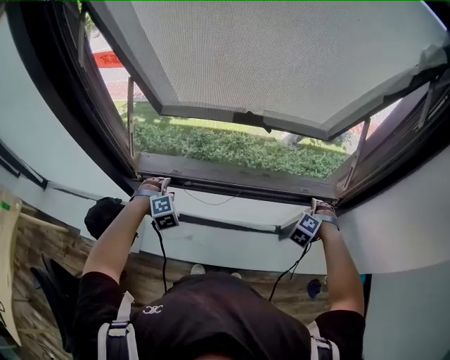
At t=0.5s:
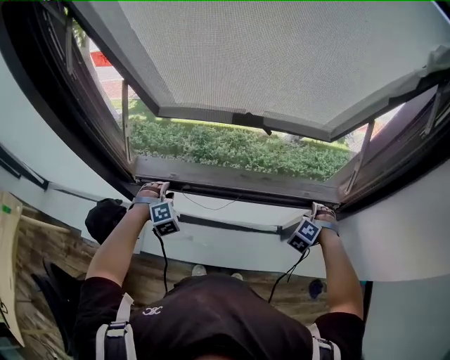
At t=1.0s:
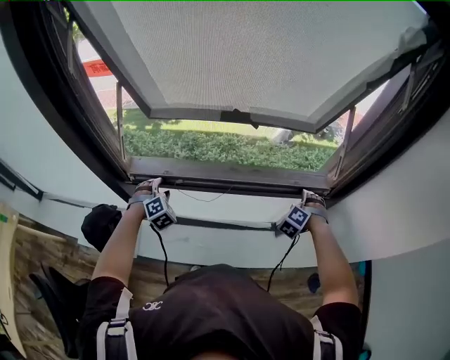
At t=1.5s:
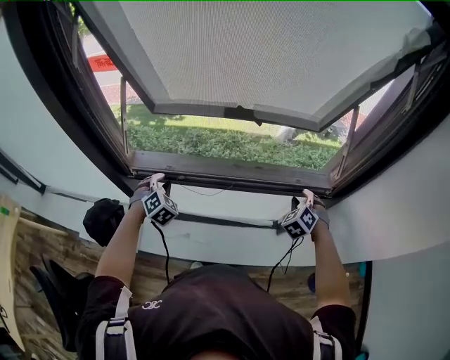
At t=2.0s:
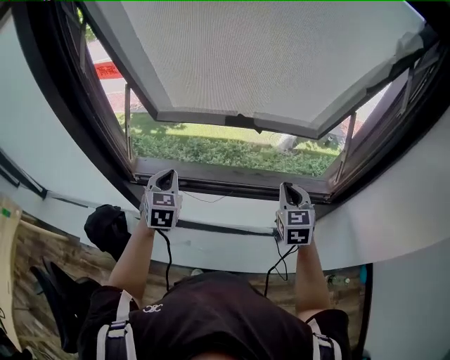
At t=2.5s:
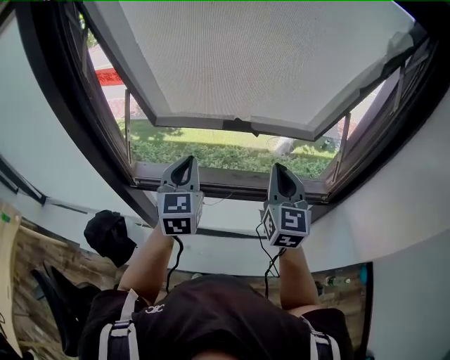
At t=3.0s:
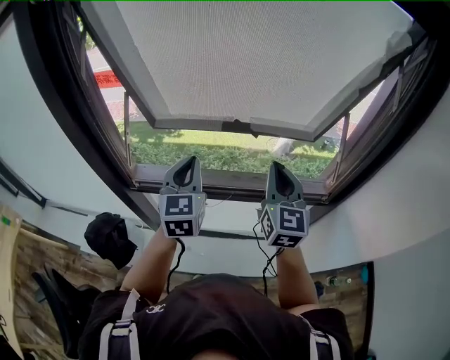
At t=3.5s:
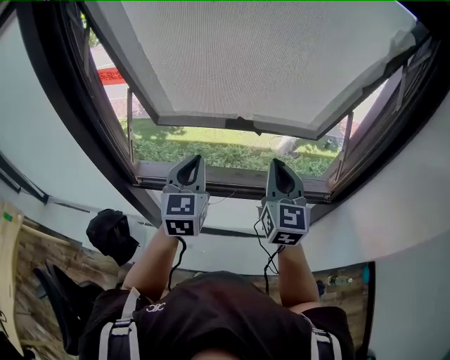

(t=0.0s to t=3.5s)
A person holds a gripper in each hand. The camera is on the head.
t=0.0s - t=2.0s: The right gripper heads upward and to the left, covering some 20 cm, tilts its fingers about 30 degrees upward, and closes up. The left gripper shifts roughly 15 cm upward, rotates around the line of its fingers by approximately 60 degrees, counterclockwise from behind, and closes up.
t=2.0s - t=3.5s: The right gripper is displaced upward and to the left by approximately 15 cm, and turns by approximately 30 degrees; the left gripper moves upward and to the right, roughly 15 cm, and rotates roughly 20 degrees.

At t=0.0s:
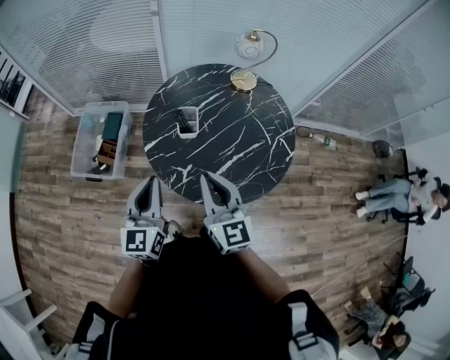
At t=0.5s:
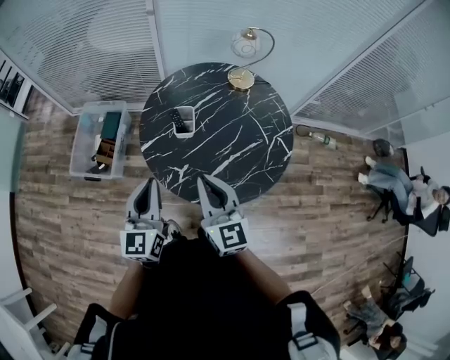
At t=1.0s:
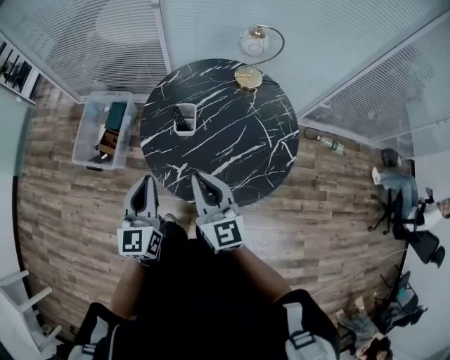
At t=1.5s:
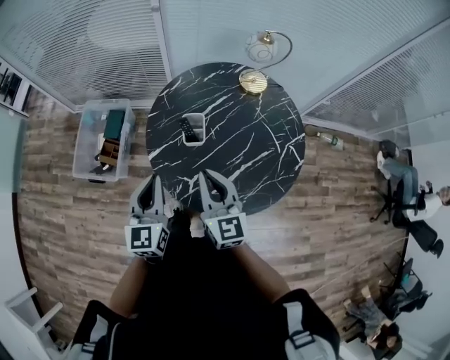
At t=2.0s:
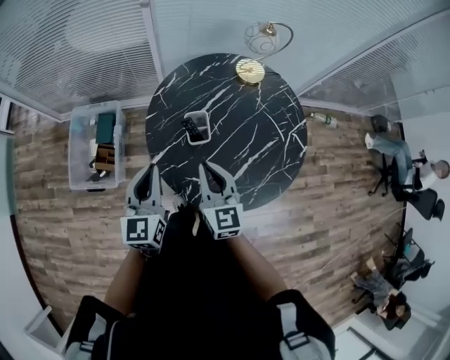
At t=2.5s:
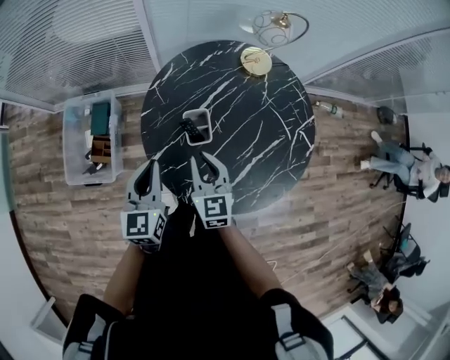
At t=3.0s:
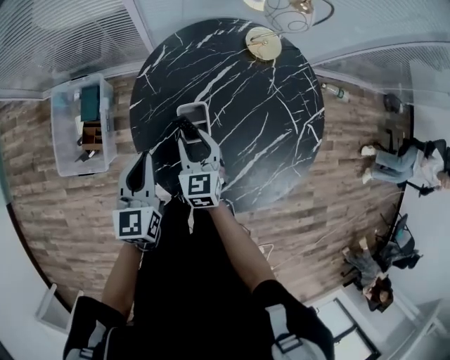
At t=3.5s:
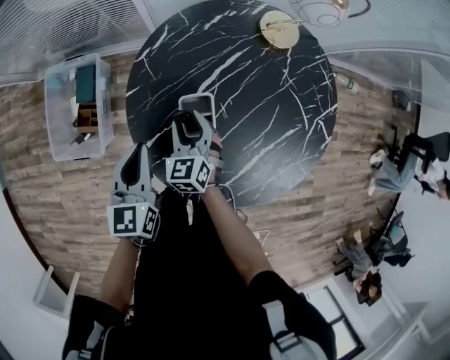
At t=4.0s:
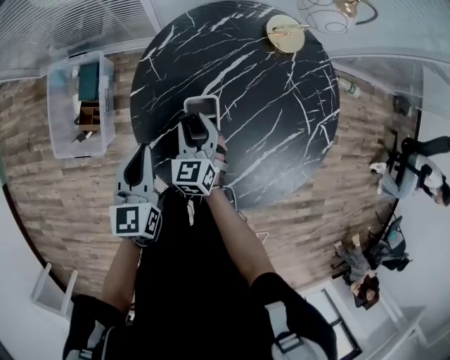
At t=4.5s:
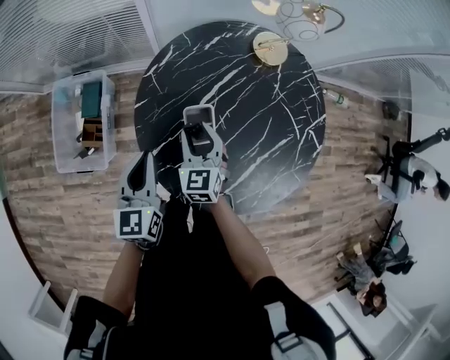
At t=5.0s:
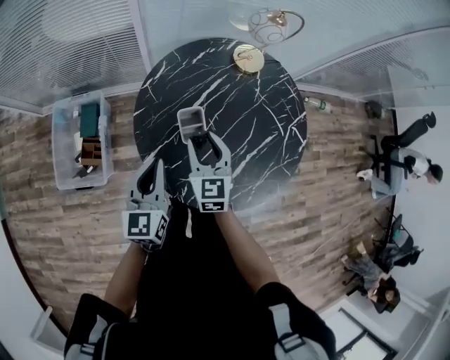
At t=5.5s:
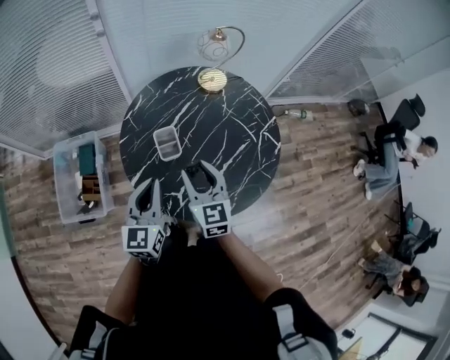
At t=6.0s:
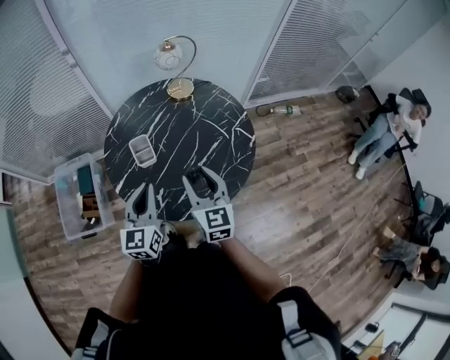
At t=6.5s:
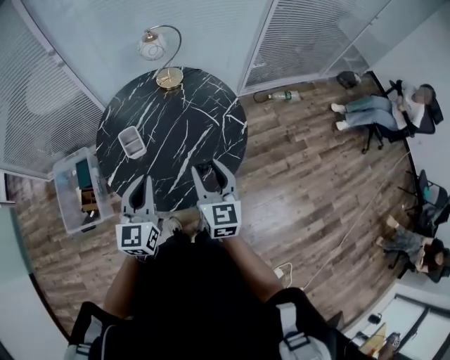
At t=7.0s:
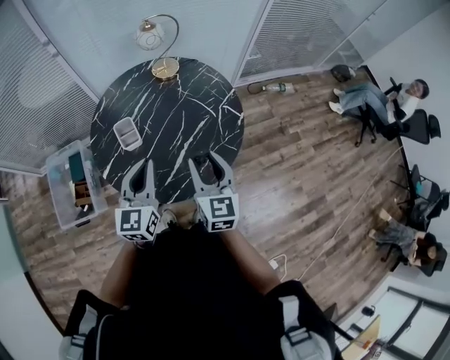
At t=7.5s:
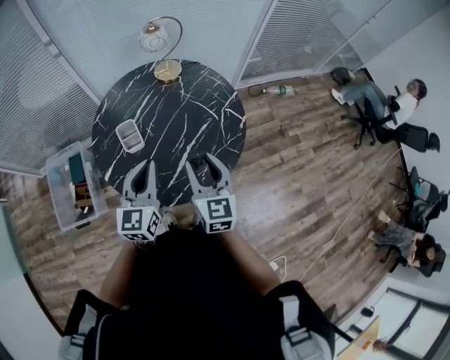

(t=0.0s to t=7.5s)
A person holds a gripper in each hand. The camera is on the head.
t=0.0s - t=2.0s: The right gripper is displaced forward, downward and to the left by roughly 20 cm. The left gripper moves forward, approximately 15 cm.
t=2.0s - t=4.0s: The two grippers go some 25 cm downward and forward. The right gripper turns by some 30 degrees, and opens.
t=4.0s - t=5.5s: The grippers both shift upward, backward and to the right by about 25 cm. The left gripper swivels approximately 20 degrees. The right gripper turns by some 30 degrees.
t=5.5s - t=7.5s: The grippers both shift to the right by about 20 cm.

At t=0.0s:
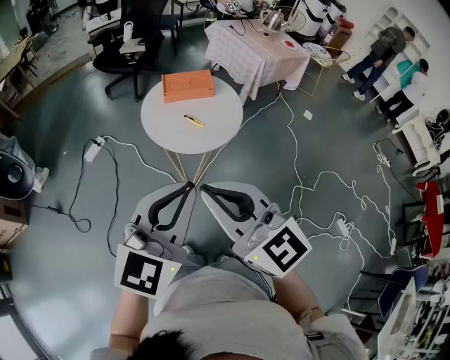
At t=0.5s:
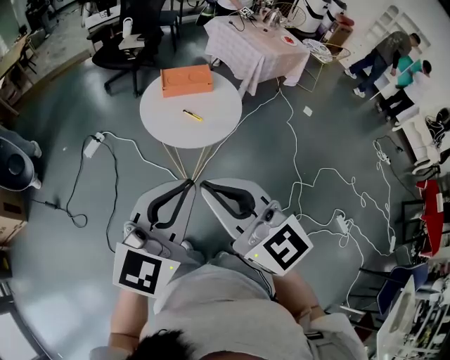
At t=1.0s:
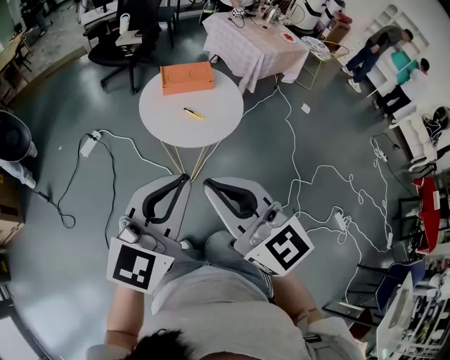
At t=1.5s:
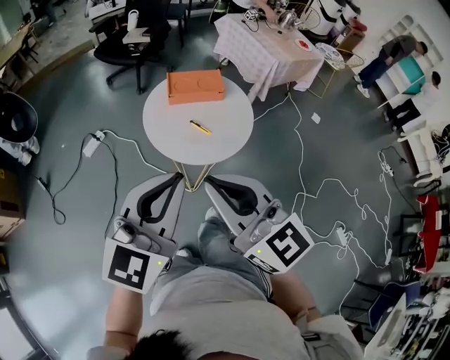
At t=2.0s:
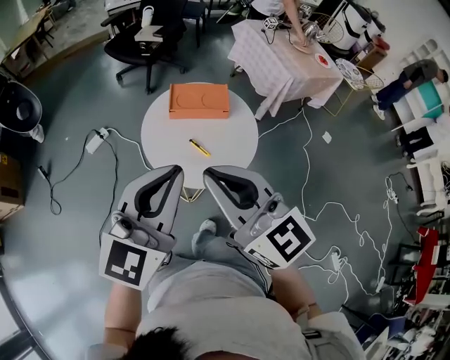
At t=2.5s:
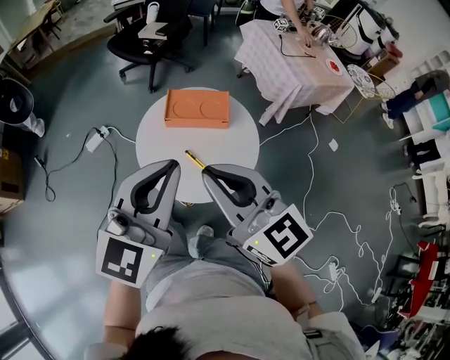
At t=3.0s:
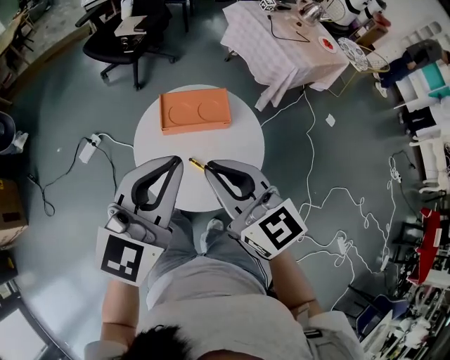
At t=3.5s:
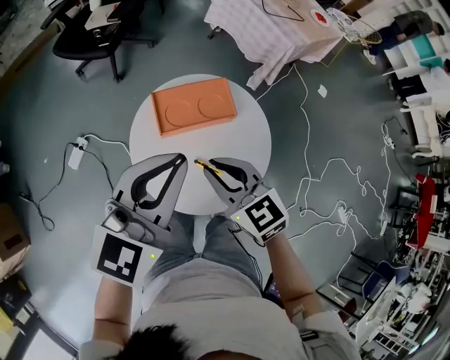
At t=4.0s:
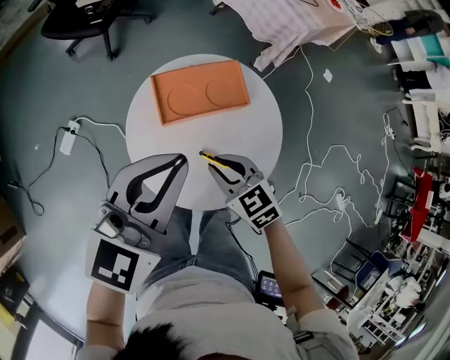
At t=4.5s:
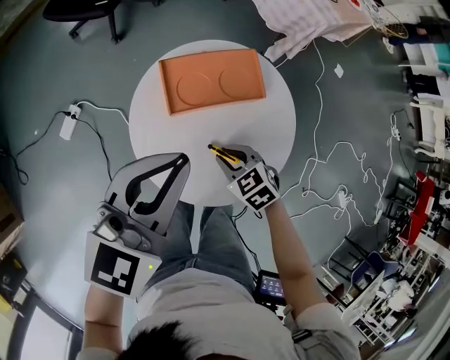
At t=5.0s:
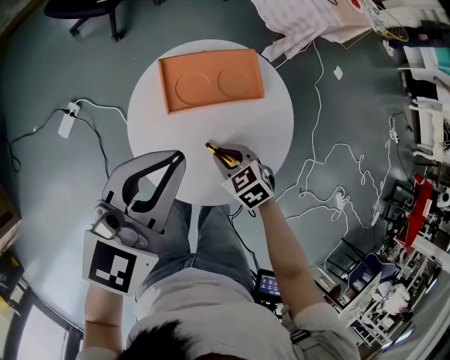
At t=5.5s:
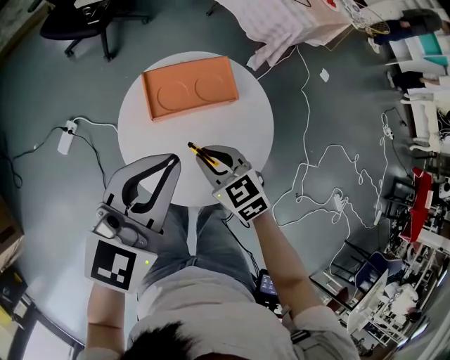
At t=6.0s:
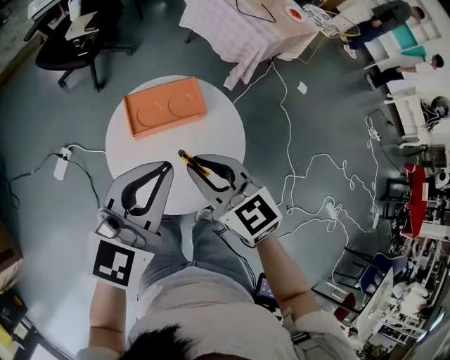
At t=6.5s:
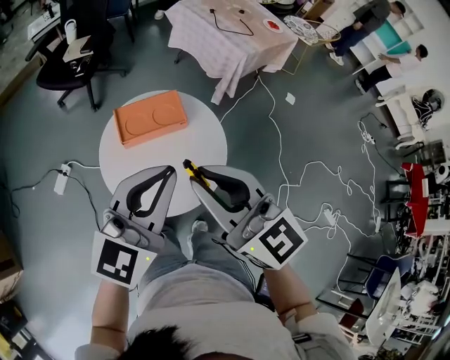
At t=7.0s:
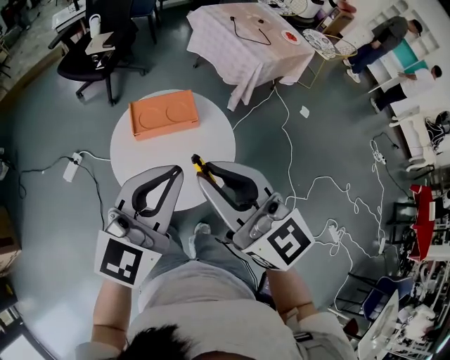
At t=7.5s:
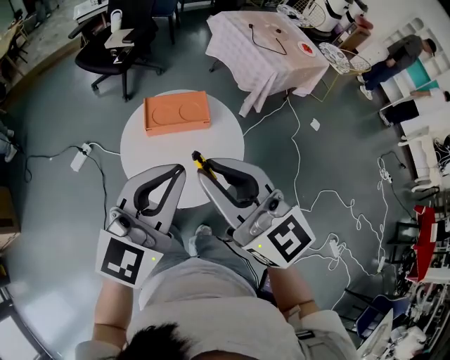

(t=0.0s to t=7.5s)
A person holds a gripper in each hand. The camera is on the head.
t=0.0s - t=2.0s: The two grippers go about 20 cm forward.
t=2.0s - t=4.0s: The left gripper shifts about 30 cm forward and downward, and rotates some 30 degrees. Meanwhile the right gripper goes roughly 40 cm downward and forward, and tilts its fingers approximately 40 degrees downward.
t=4.0s - t=5.5s: The right gripper travels downward and back again, approximately 10 cm each way.
t=5.5s - t=7.5s: The left gripper goes approximately 20 cm backward, upward and to the right. Meanwhile the right gripper heads upward, covering roughly 30 cm, and points its fingers approximately 40 degrees further upward.

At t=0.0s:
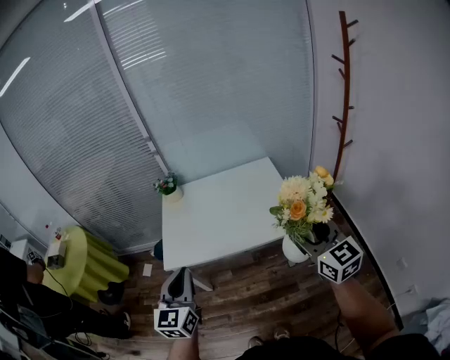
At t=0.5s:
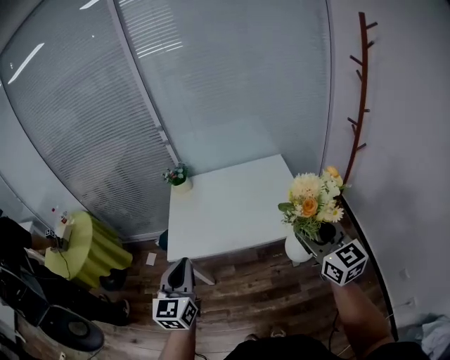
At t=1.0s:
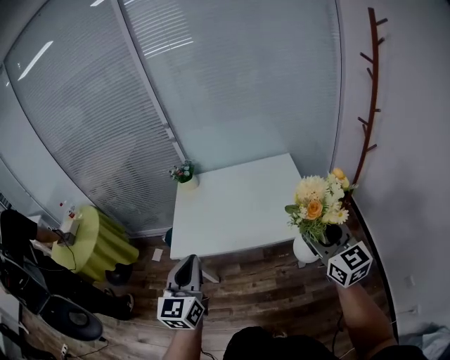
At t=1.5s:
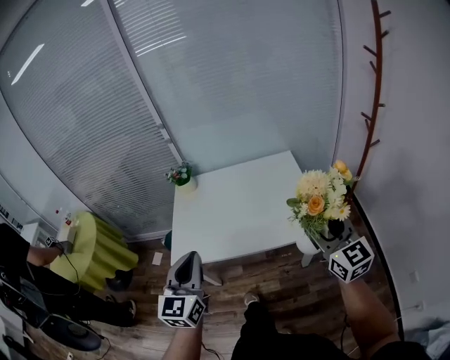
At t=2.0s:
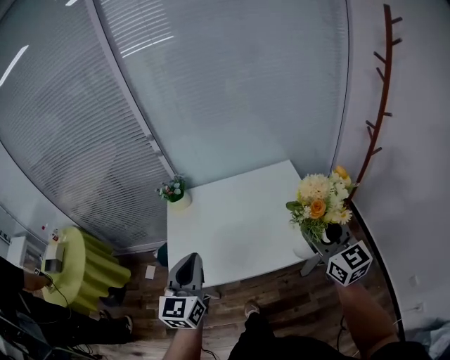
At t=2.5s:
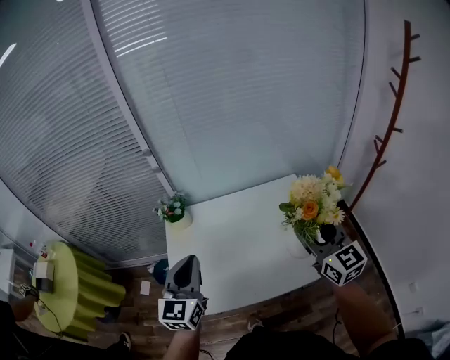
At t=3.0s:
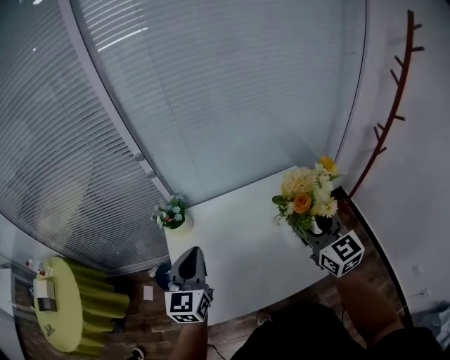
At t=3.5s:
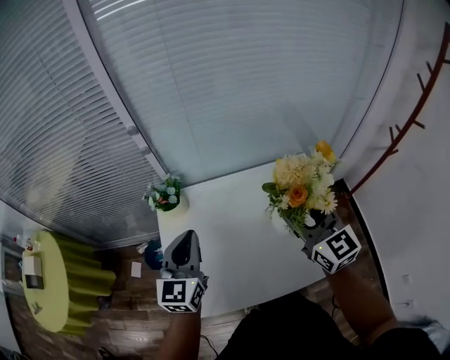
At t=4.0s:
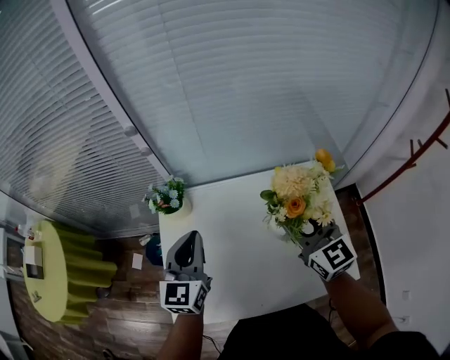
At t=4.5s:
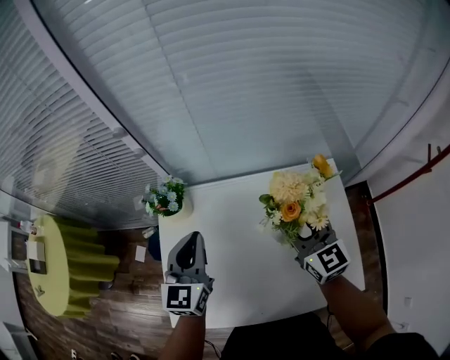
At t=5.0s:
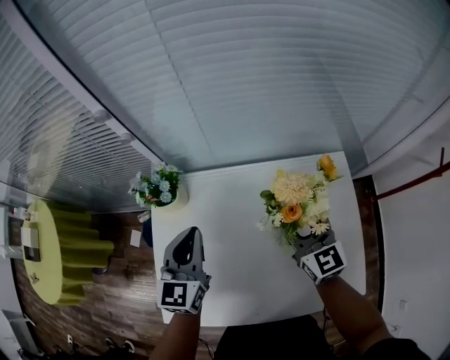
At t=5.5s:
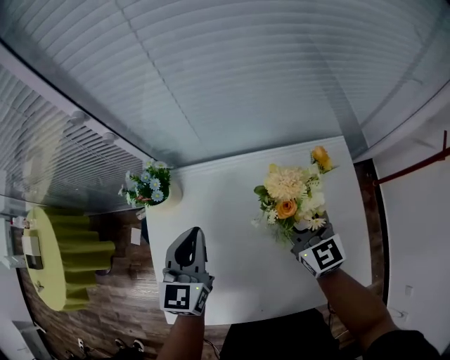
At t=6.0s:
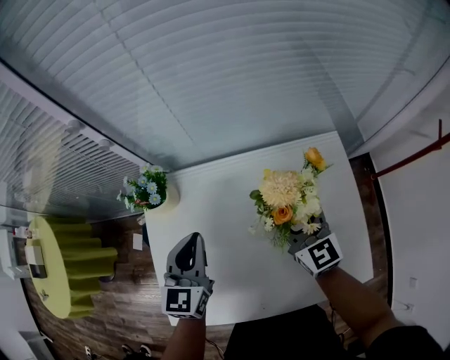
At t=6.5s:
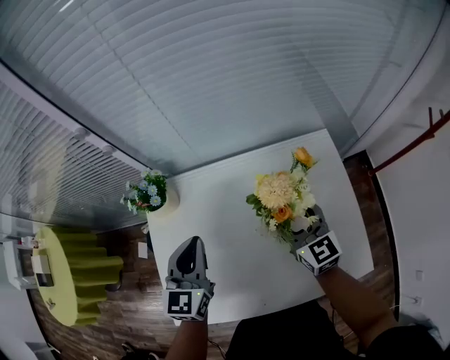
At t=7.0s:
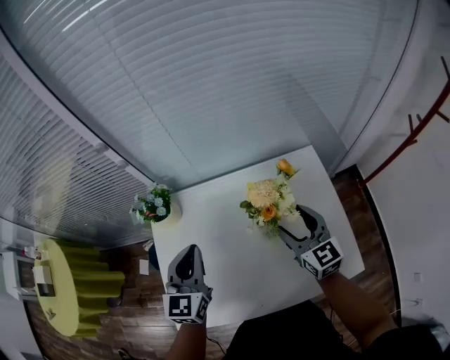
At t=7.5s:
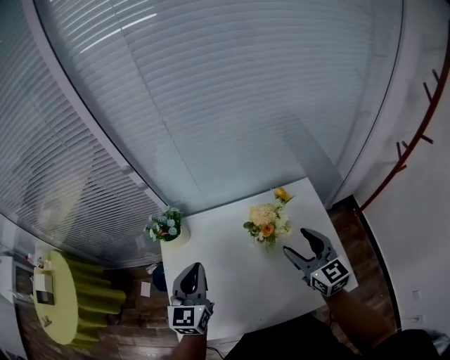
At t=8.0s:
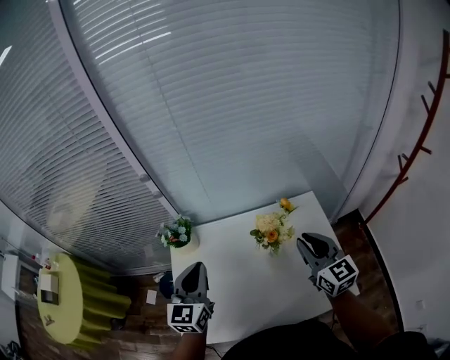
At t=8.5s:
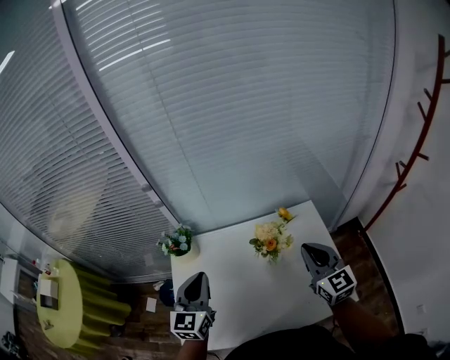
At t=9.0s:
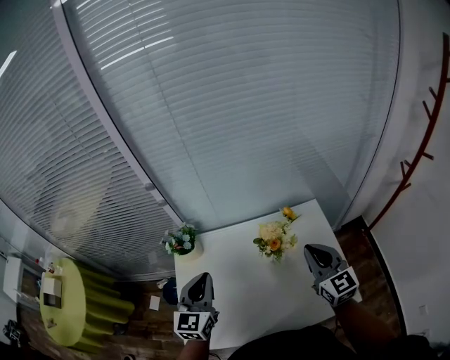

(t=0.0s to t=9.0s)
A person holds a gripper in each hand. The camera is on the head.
t=0.0s - t=2.0s: The two grippers go some 15 cm forward.
t=2.0s - t=4.5s: The grippers both shift forward by roughly 35 cm.
t=4.5s - t=7.0s: The right gripper shifts about 5 cm backward.
t=7.0s - t=9.0s: The left gripper moves upward, about 5 cm; the right gripper shifts roughly 10 cm upward, and closes its fingers.
